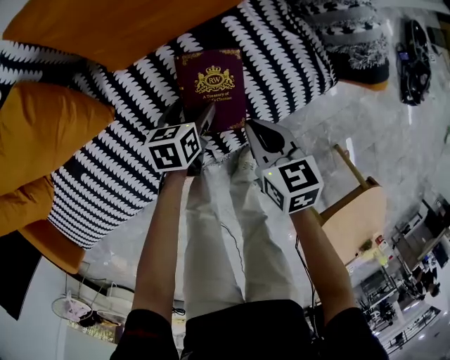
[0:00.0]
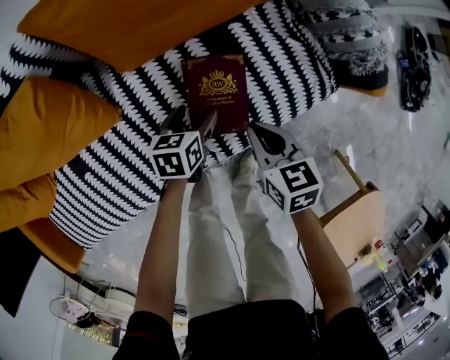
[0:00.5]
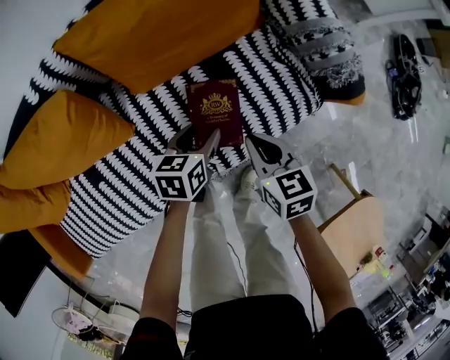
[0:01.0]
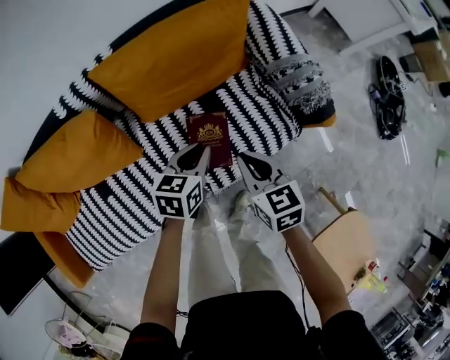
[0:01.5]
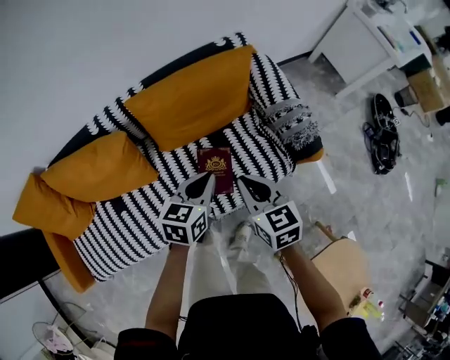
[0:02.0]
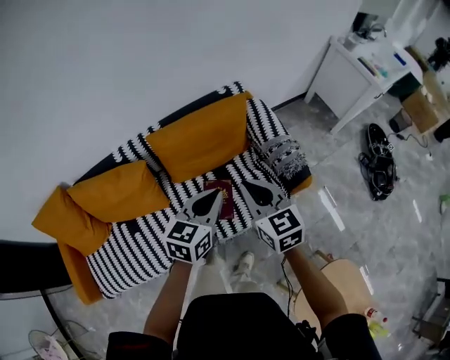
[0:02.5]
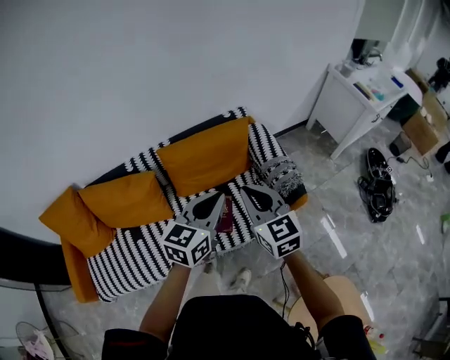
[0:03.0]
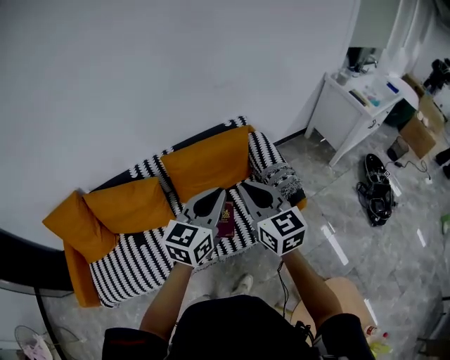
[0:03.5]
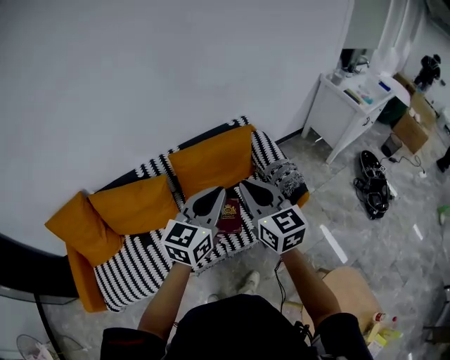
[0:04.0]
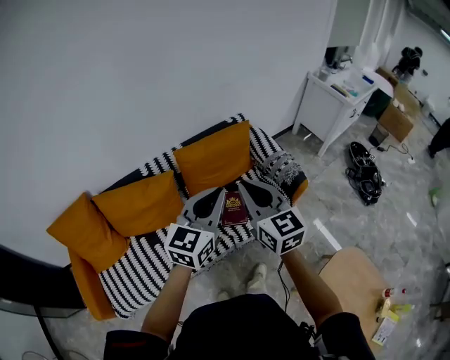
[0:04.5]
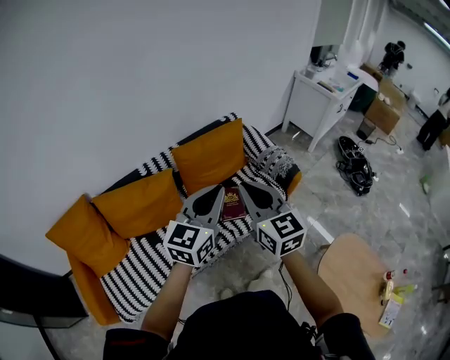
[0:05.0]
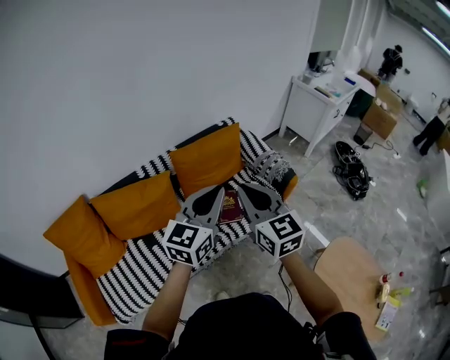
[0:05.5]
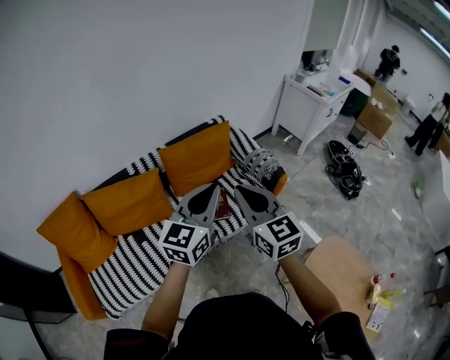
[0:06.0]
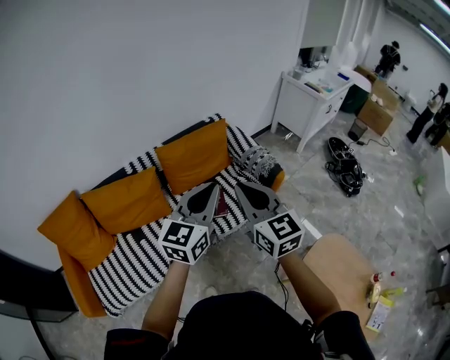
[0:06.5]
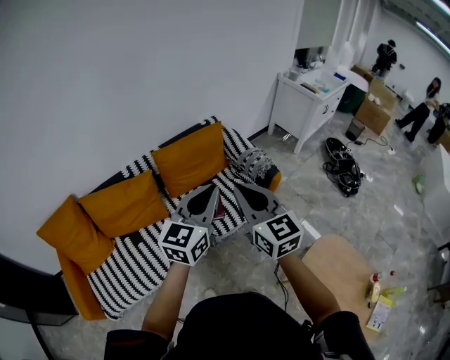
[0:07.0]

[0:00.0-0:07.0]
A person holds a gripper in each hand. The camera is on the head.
0:00.0 to 0:02.0: The grippers both shift upward by approximately 35 cm. The right gripper changes its angle by roughly 20 degrees; the left gripper changes its angle by approximately 30 degrees, and closes.
0:02.0 to 0:03.5: Both grippers move upward, some 30 cm. The right gripper changes its angle by some 30 degrees. Meanwhile the left gripper rotates approximately 30 degrees.
0:03.5 to 0:05.0: Both grippers travel together backward and to the left, approximately 25 cm.
0:05.0 to 0:07.0: The grippers both shift to the right by some 10 cm.

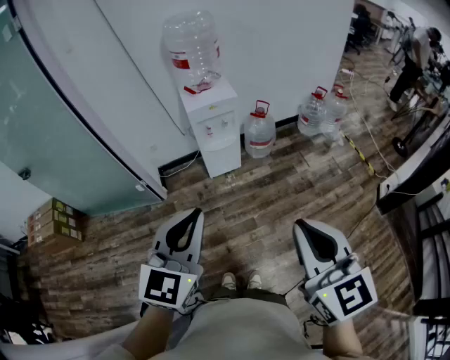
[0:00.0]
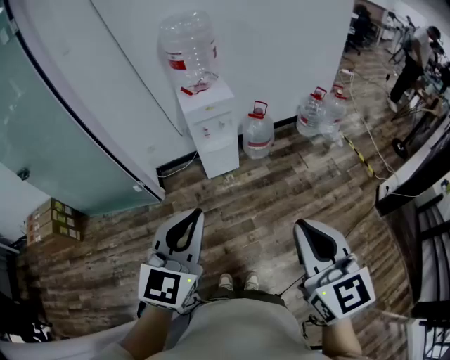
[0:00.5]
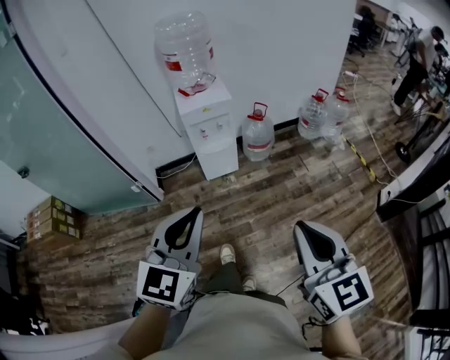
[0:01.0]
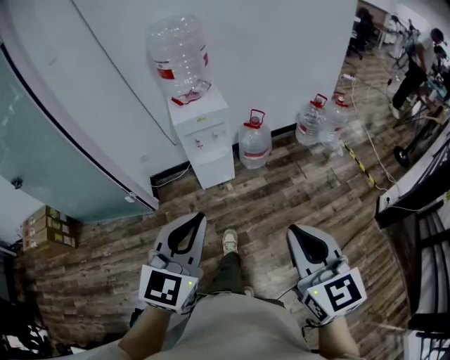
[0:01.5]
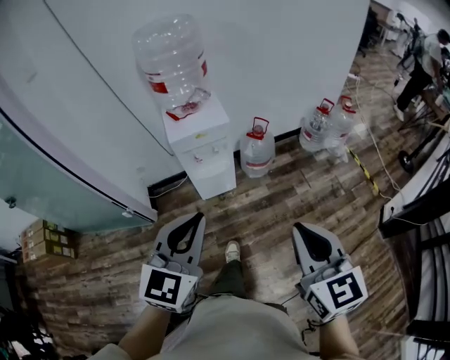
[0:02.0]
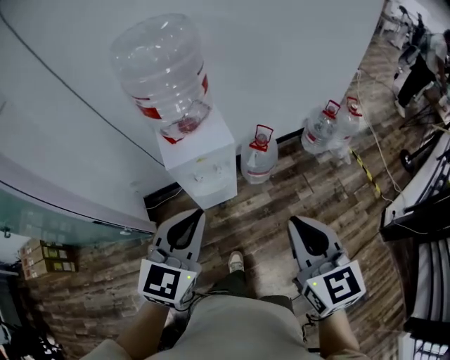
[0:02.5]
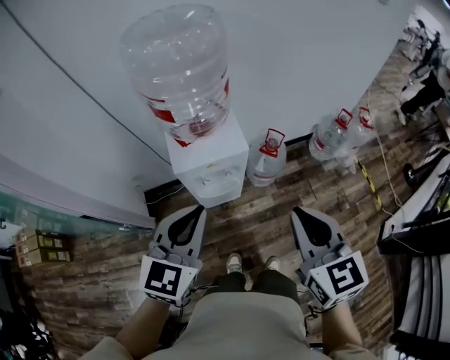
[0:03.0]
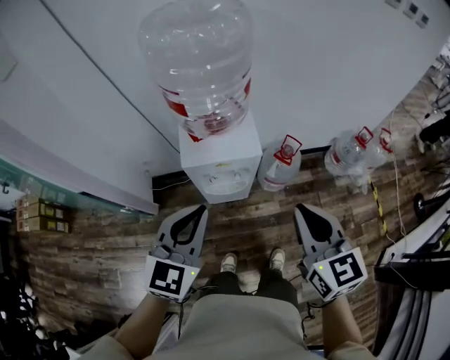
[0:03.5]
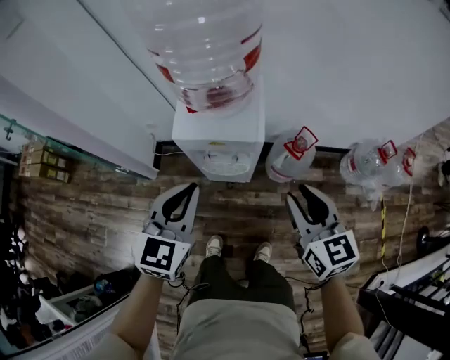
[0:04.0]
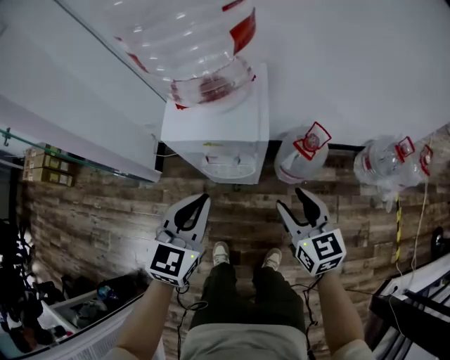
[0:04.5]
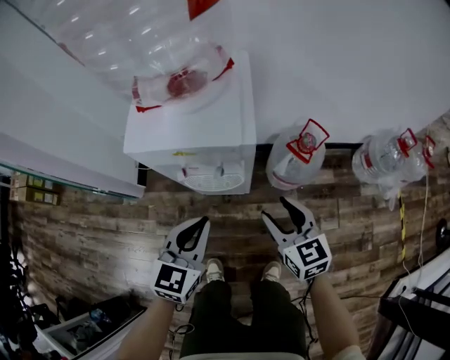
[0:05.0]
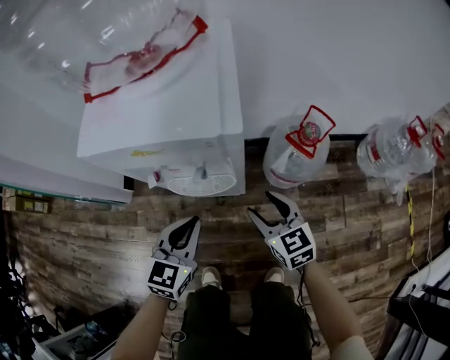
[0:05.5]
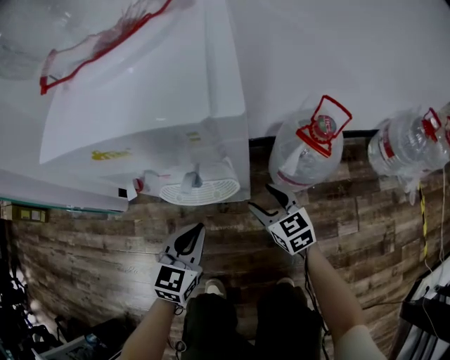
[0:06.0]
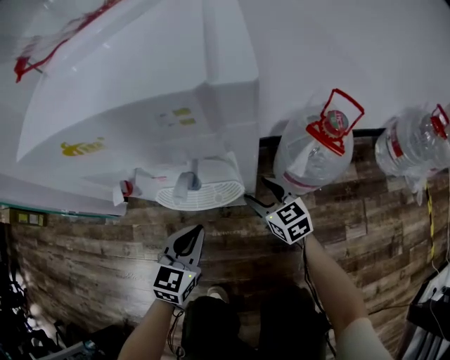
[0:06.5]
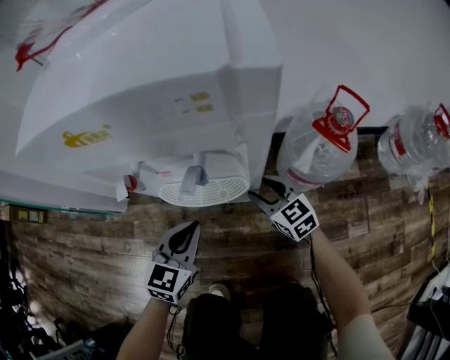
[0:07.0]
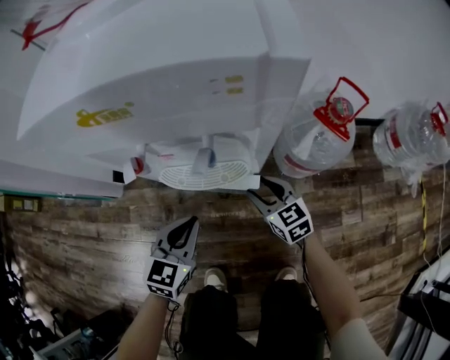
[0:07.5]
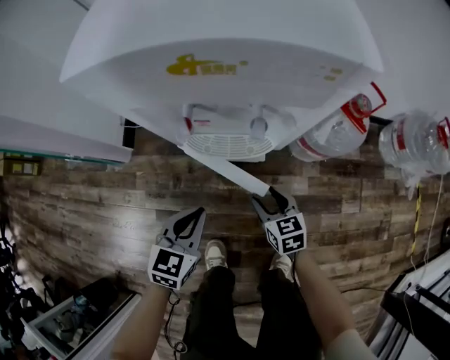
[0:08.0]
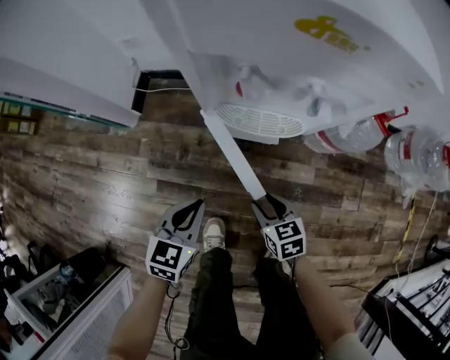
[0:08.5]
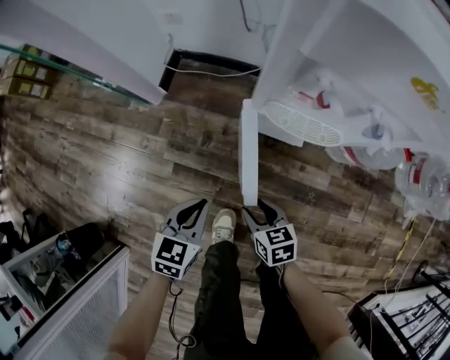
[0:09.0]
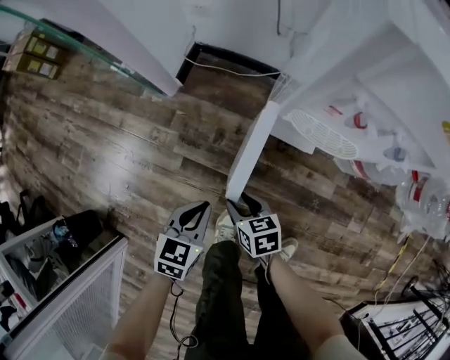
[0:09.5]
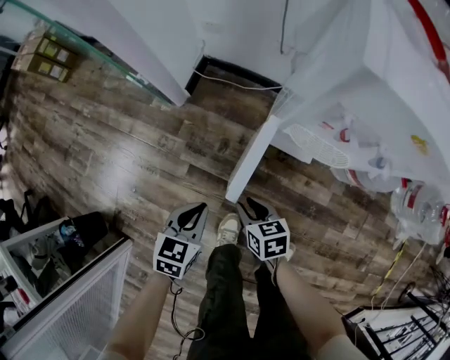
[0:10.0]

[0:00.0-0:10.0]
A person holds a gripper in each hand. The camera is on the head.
0:00.0 to 0:02.0: The two grippers go approximately 25 cm forward.
0:02.0 to 0:04.0: The right gripper changes place by roughly 40 cm, turns by roughly 30 degrees, and opens up, while the left gripper changes place by roughly 30 cm, and changes its angle by roughly 30 degrees.
0:04.0 to 0:06.0: Both grippers travel together downward, about 50 cm. The right gripper opens up.
0:06.0 to 0:08.0: The left gripper shifts approximately 10 cm to the left and backward. The right gripper heads backward, to the left and downward, covering some 15 cm.
0:08.0 to 0:10.0: Both grippers move to the left, some 25 cm. The right gripper swivels about 20 degrees, and closes its fingers. The left gripper changes its angle by about 20 degrees.

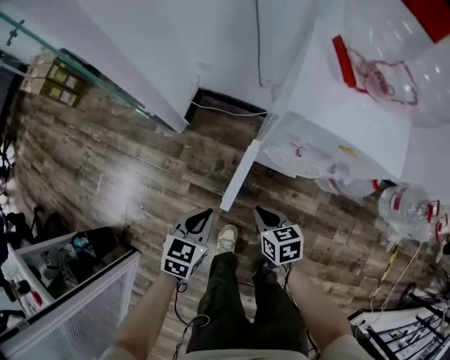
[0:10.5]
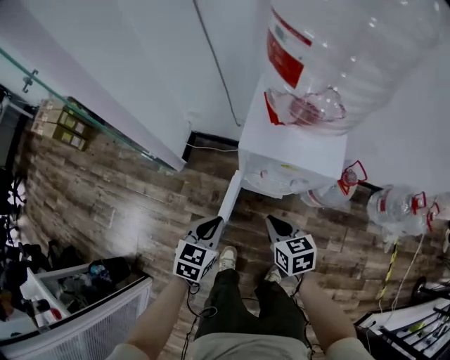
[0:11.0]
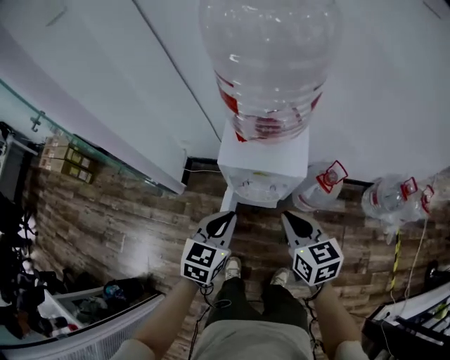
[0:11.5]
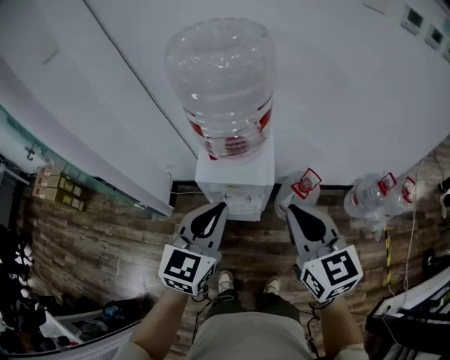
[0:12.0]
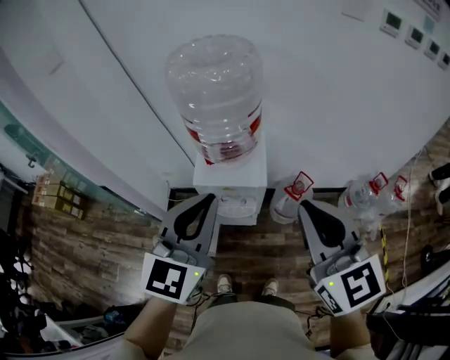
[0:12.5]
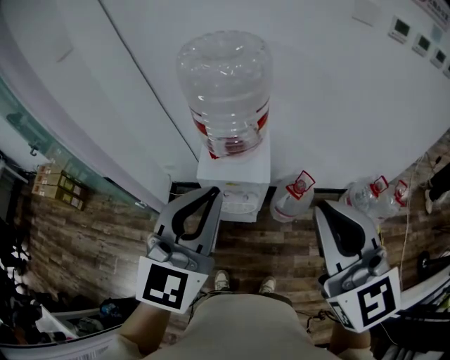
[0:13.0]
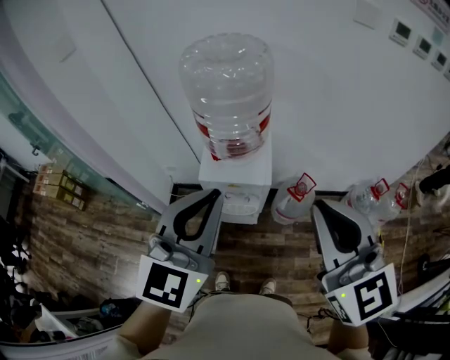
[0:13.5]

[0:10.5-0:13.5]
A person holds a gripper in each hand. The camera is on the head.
0:10.5 to 0:12.0: The two grippers go about 60 cm upward and to the right. The right gripper tips its fingers upward by some 30 degrees. The left gripper rotates some 40 degrees.
0:12.0 to 0:13.5: The right gripper is displaced upward and backward by some 15 cm. The left gripper is displaced upward by roughly 15 cm.

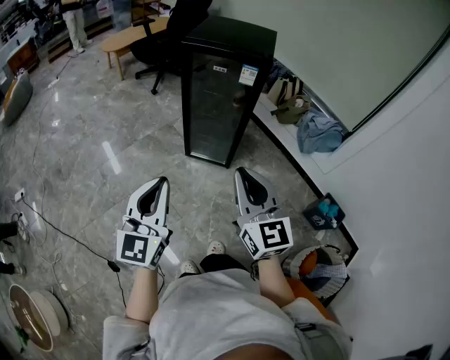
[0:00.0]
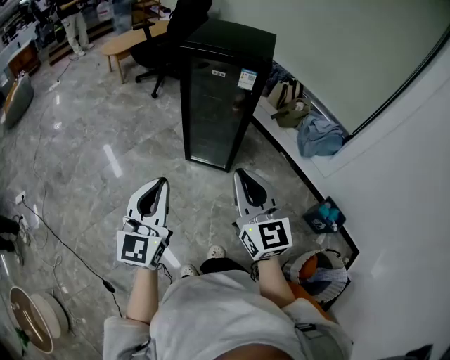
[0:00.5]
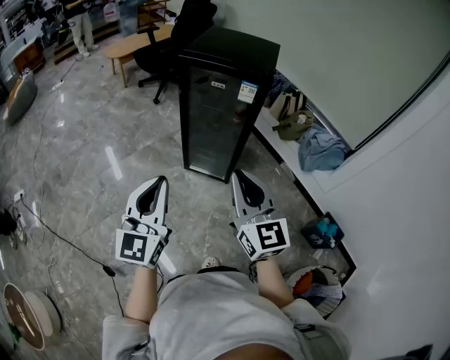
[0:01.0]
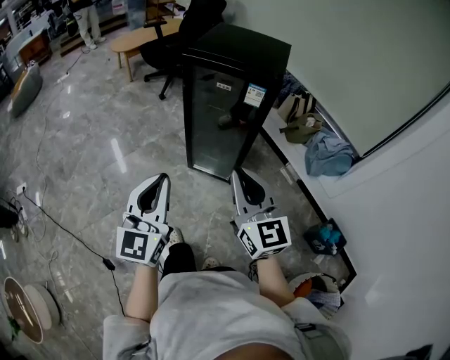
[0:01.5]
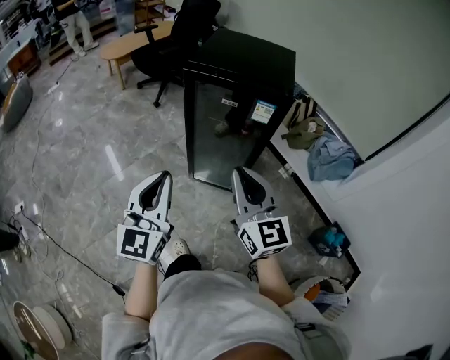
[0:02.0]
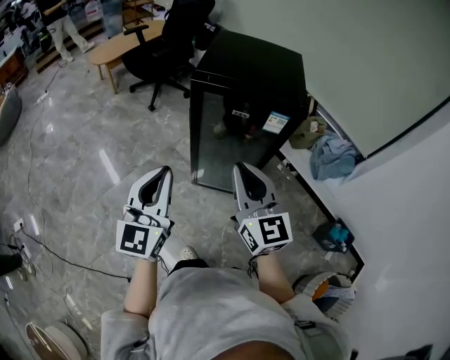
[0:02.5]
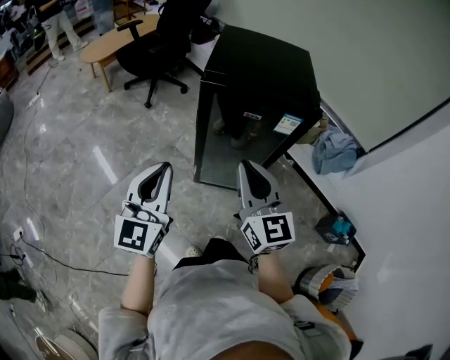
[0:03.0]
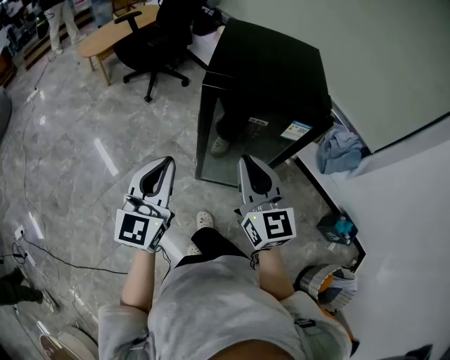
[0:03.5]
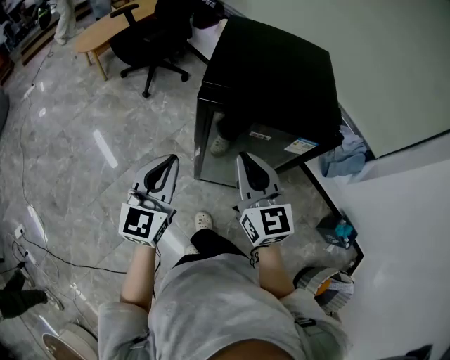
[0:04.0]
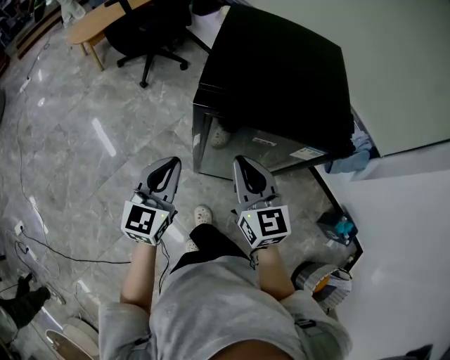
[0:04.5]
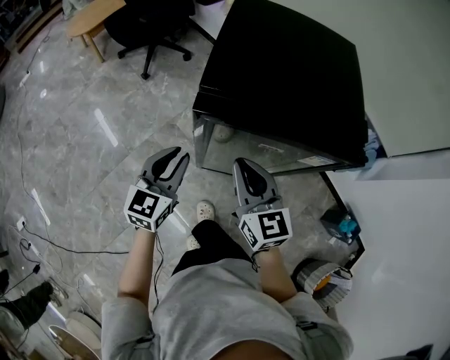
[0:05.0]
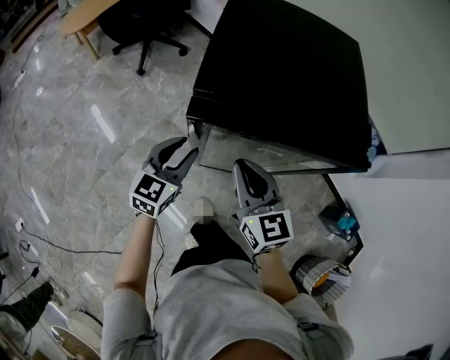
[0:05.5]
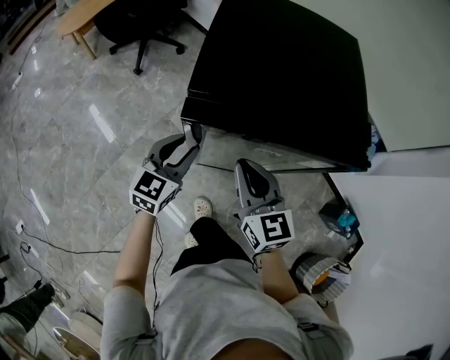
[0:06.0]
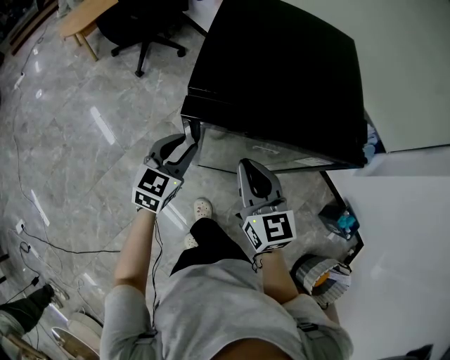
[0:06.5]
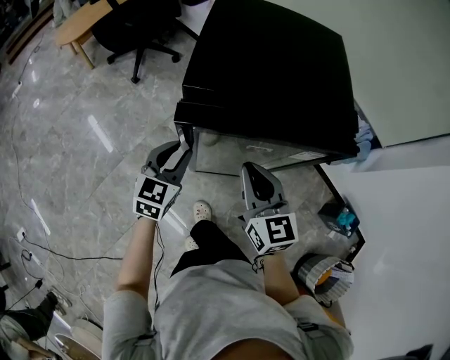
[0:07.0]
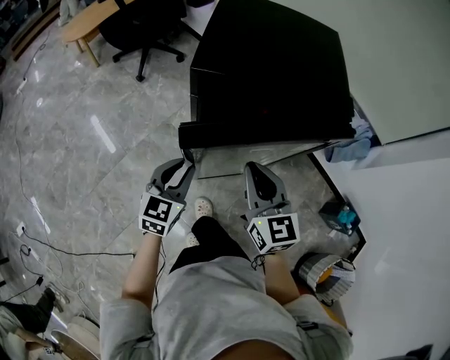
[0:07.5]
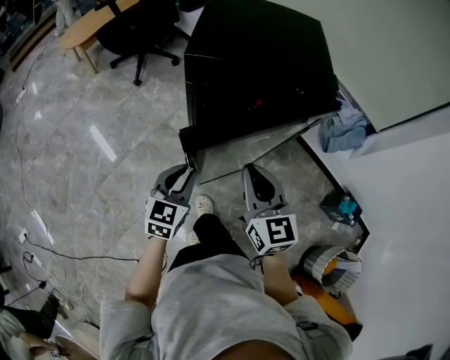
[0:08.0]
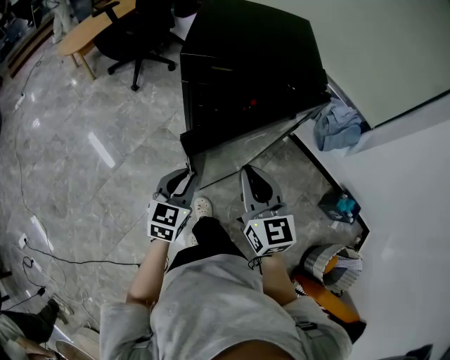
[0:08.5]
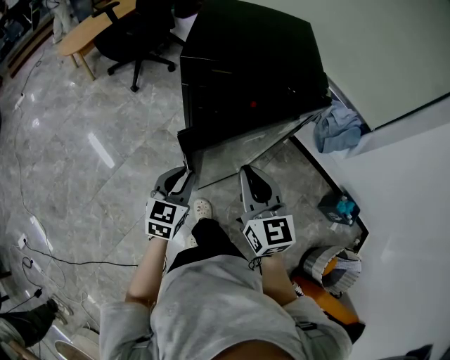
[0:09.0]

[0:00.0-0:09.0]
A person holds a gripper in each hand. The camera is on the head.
0:00.0 to 0:02.0: Both grippers travel together forward, roughly 20 cm.
0:02.0 to 0:04.5: Both grippers travel together forward and downward, approximately 30 cm.
0:04.5 to 0:07.0: The right gripper changes place by approximately 5 cm; the left gripper travels downward and forward by about 10 cm, and opens its fingers.
0:07.0 to 0:09.0: Both grippers move backward, approximately 15 cm.
